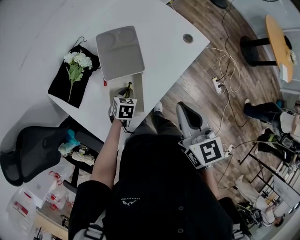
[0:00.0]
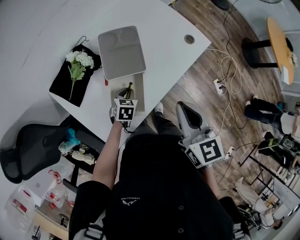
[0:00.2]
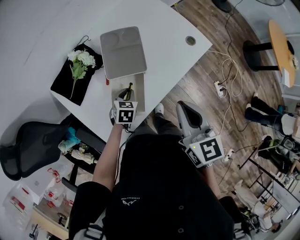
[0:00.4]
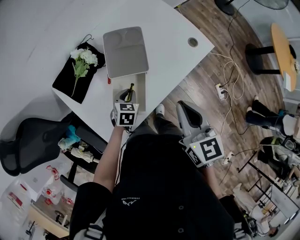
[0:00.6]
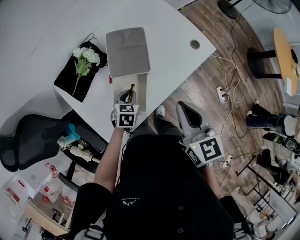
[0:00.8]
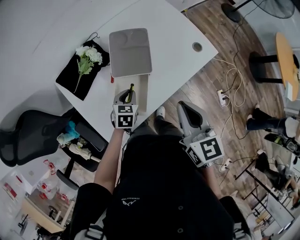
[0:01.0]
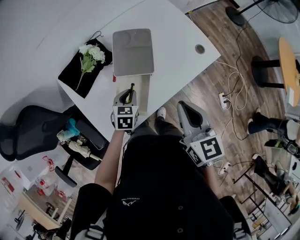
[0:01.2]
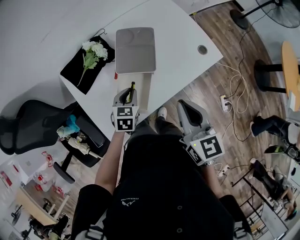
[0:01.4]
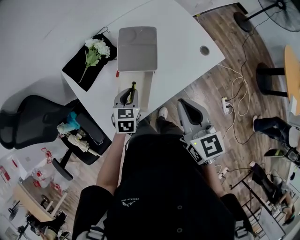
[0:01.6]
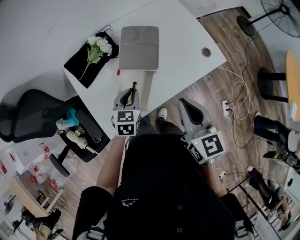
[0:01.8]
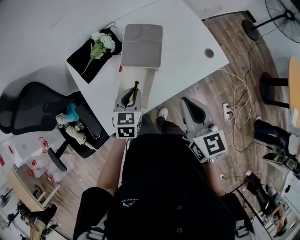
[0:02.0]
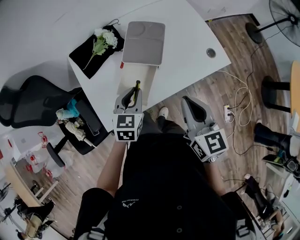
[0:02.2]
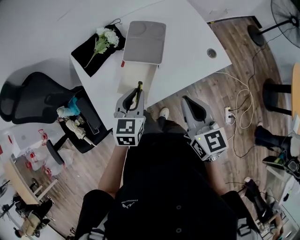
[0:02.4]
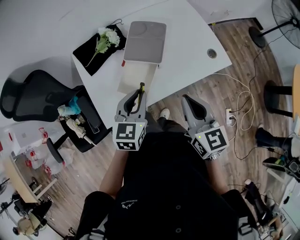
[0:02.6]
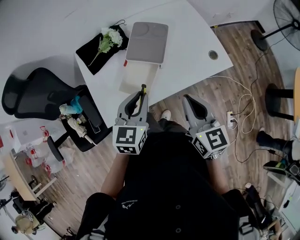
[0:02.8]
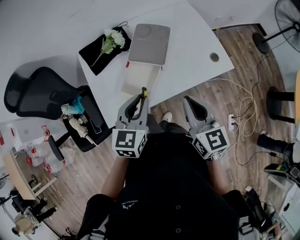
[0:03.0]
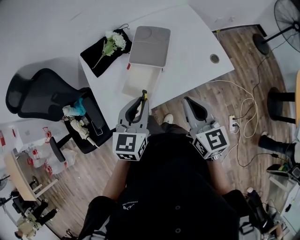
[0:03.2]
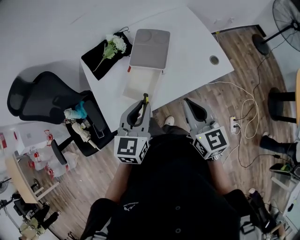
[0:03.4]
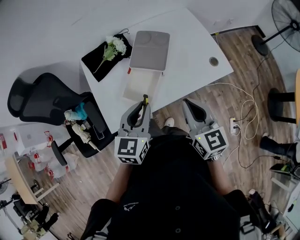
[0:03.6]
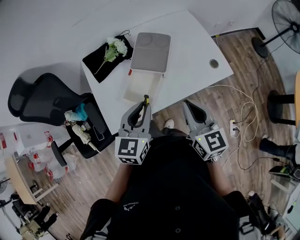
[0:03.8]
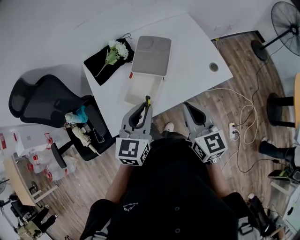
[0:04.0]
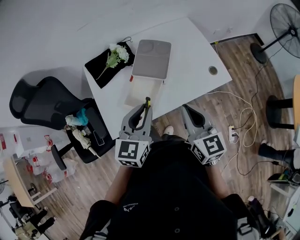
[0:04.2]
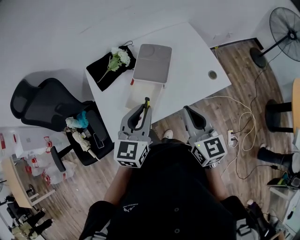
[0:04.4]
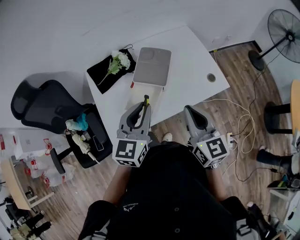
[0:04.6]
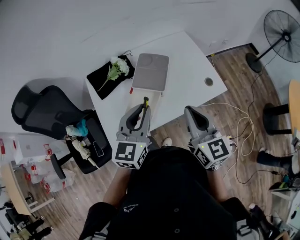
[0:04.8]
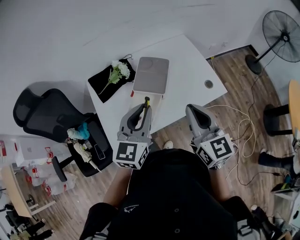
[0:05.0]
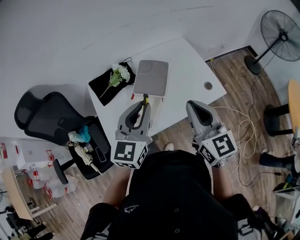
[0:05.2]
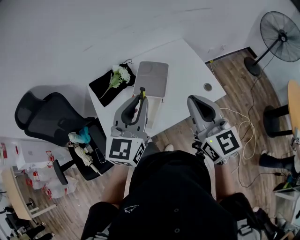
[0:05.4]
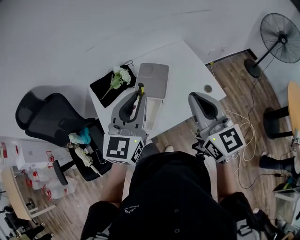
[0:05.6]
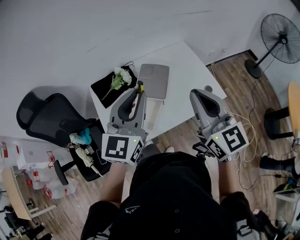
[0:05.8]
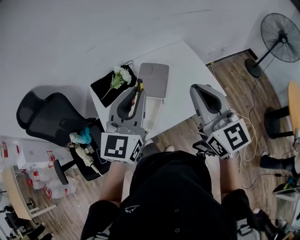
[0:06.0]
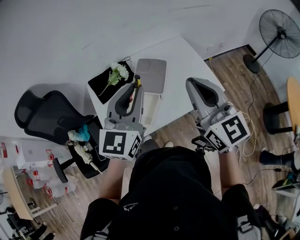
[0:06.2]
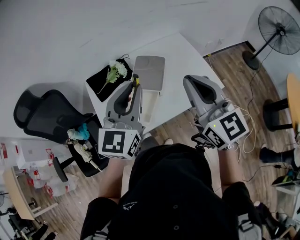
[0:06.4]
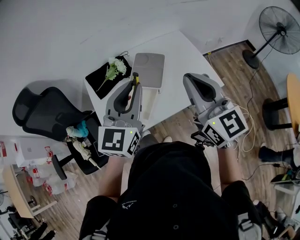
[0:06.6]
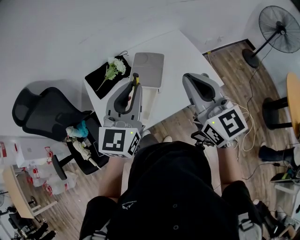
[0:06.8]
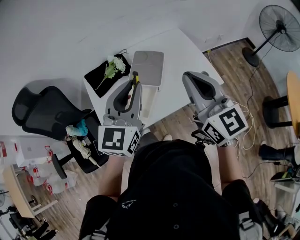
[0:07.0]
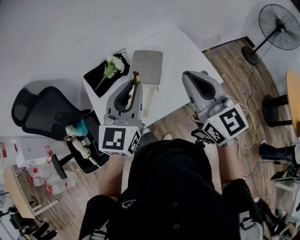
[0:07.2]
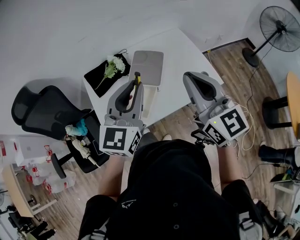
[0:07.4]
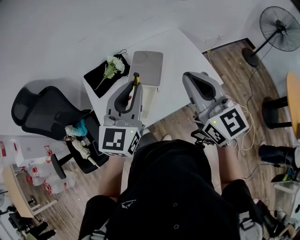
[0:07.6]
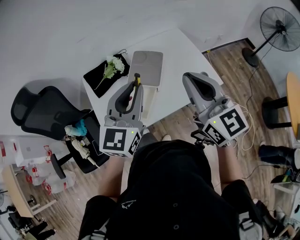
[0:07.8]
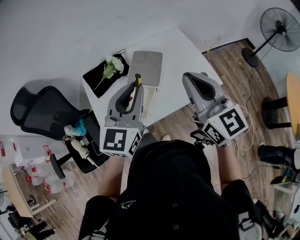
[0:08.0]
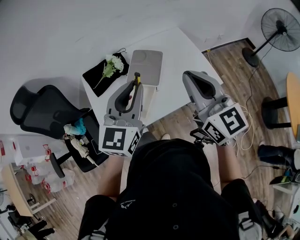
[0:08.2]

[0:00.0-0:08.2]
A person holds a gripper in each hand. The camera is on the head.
0:00.0 to 0:01.6: The left gripper is displaced upward by roughly 10 cm, and changes its angle by some 20 degrees.
0:01.6 to 0:03.2: The right gripper ends up approximately 5 cm from where it was; the left gripper is displaced upward and backward by roughly 20 cm, and turns by some 20 degrees.
0:03.2 to 0:05.0: The two grippers go about 10 cm upward.
0:05.0 to 0:06.6: The two grippers go roughly 10 cm upward.
0:06.6 to 0:08.2: The grippers make only small movements.

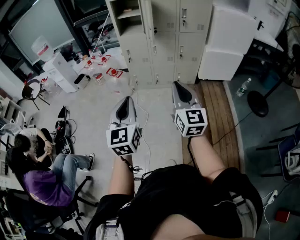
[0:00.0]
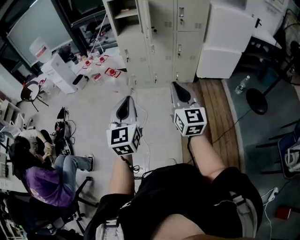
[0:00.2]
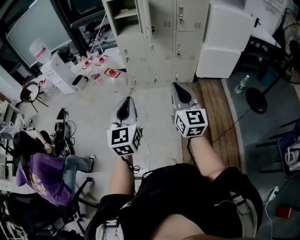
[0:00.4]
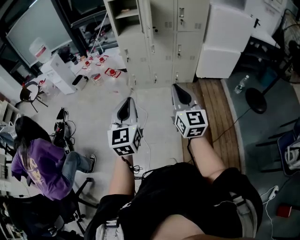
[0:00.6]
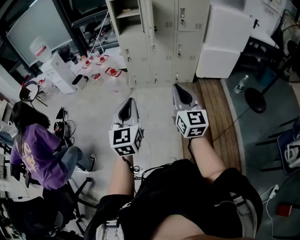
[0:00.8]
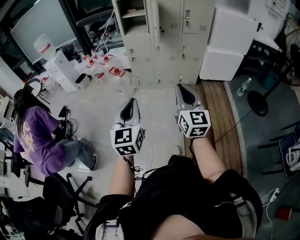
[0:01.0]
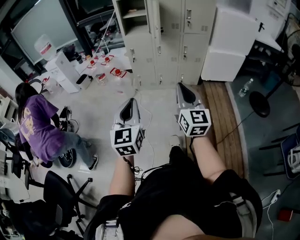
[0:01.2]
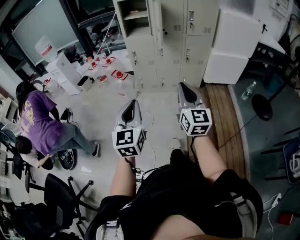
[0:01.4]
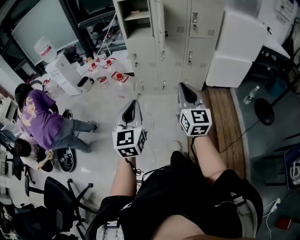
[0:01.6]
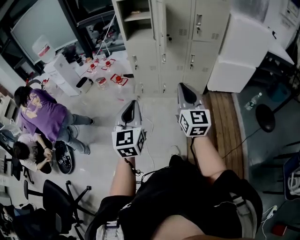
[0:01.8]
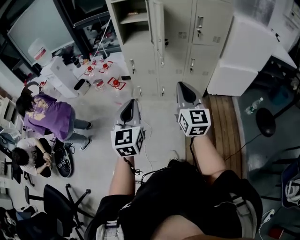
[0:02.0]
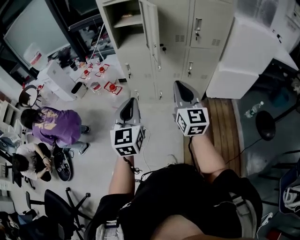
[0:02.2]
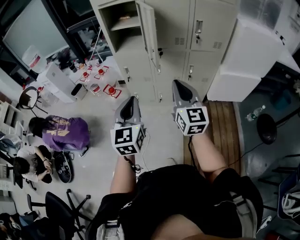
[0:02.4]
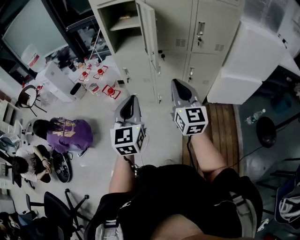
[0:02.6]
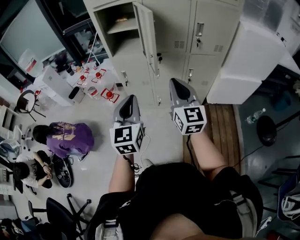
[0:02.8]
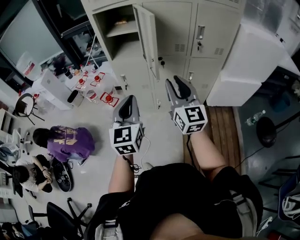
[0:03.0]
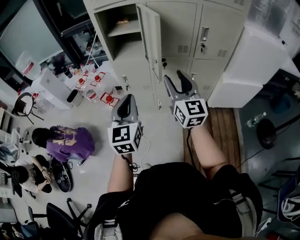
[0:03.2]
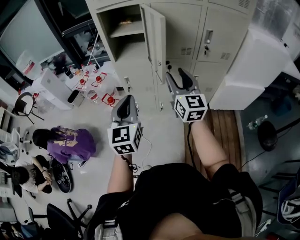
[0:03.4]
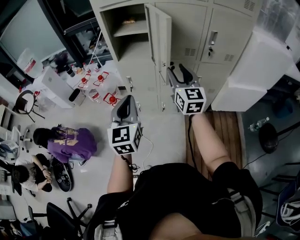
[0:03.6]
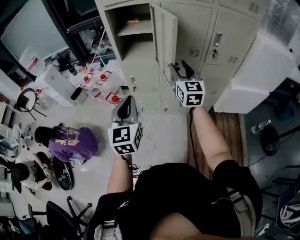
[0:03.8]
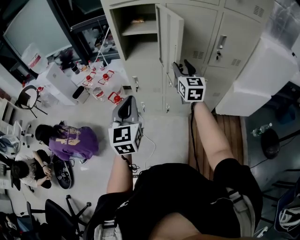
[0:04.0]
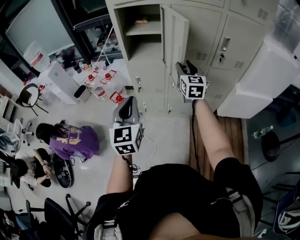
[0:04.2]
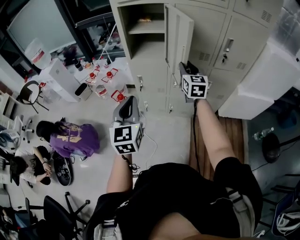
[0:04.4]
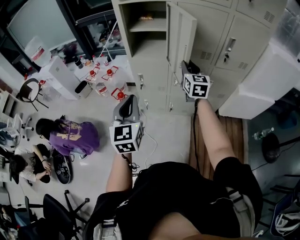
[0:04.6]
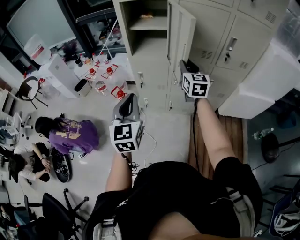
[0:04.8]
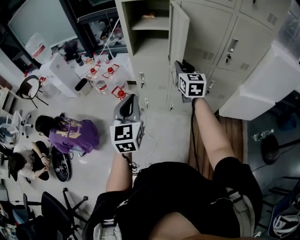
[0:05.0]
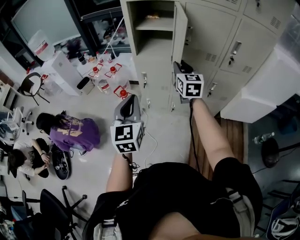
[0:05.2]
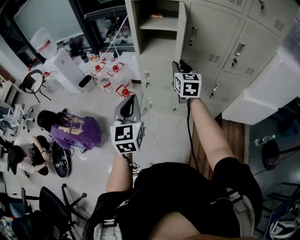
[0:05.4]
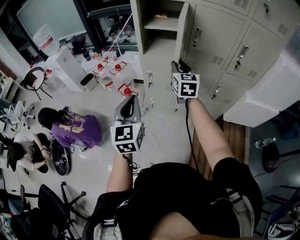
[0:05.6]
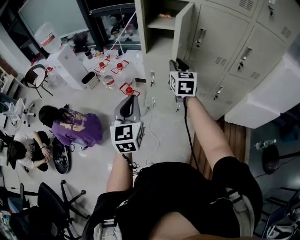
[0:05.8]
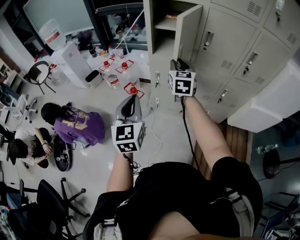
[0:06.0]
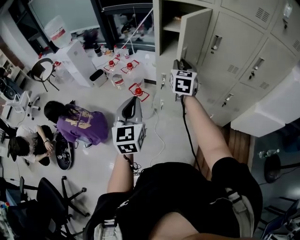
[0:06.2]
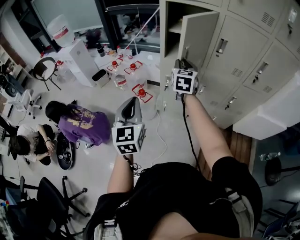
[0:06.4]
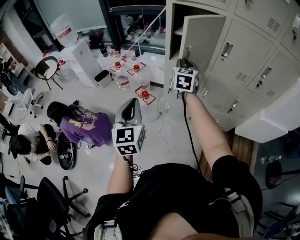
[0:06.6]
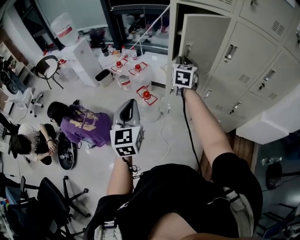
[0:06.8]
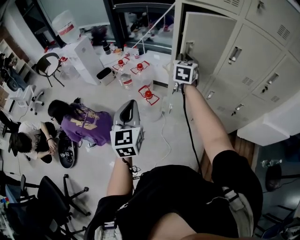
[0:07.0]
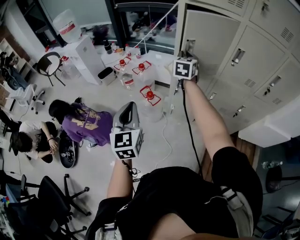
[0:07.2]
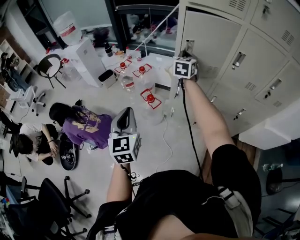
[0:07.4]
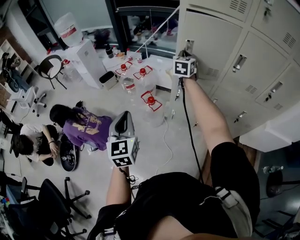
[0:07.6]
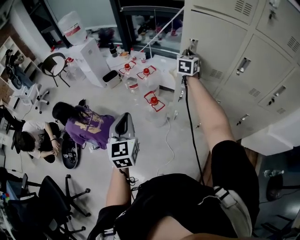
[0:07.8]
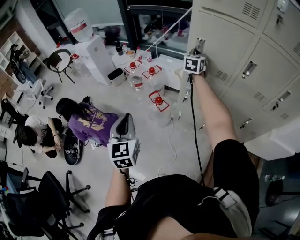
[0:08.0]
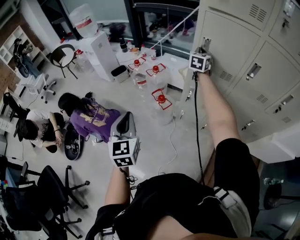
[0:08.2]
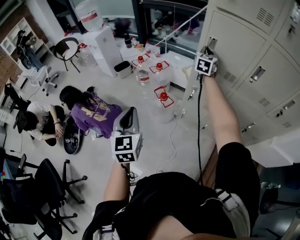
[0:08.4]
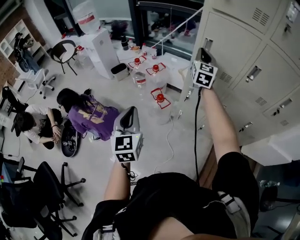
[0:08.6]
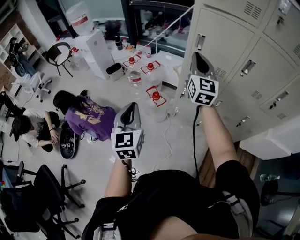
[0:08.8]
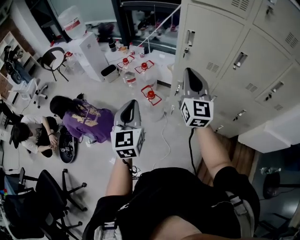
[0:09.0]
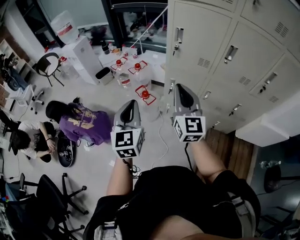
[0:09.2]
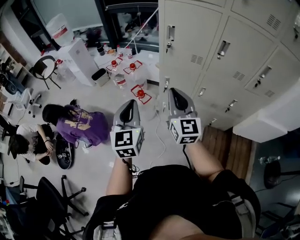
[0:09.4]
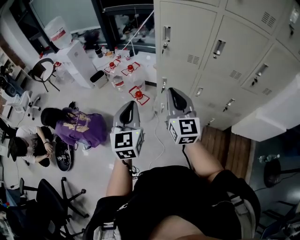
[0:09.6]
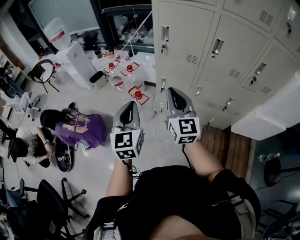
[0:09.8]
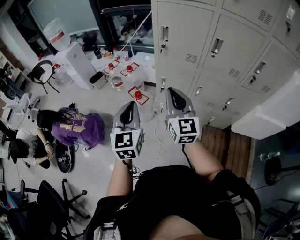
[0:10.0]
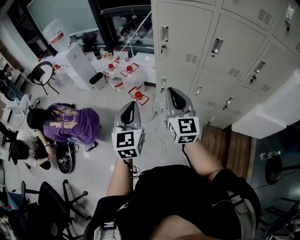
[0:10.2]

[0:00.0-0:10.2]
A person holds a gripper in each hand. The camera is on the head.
0:00.0 to 0:01.4: The left gripper moves some 5 cm.
0:01.4 to 0:03.0: Both grippers are carried forward, some 40 cm. The right gripper opens its fingers.
0:03.0 to 0:04.4: The right gripper heads forward, covering about 20 cm, while the left gripper is displaced to the left and forward by approximately 10 cm.
0:04.4 to 0:05.8: The right gripper shifts approximately 15 cm to the left. The left gripper goes roughly 5 cm to the left.
0:05.8 to 0:07.2: The left gripper goes roughly 15 cm to the left. Meanwhile the right gripper moves forward and to the left, roughly 20 cm.
0:07.2 to 0:08.8: The right gripper moves backward and upward, roughly 15 cm, and rotates some 30 degrees.
0:08.8 to 0:10.2: The left gripper is displaced to the right by approximately 10 cm. Meanwhile the right gripper travels backward and downward by roughly 20 cm.

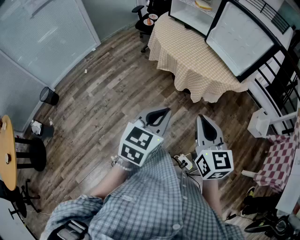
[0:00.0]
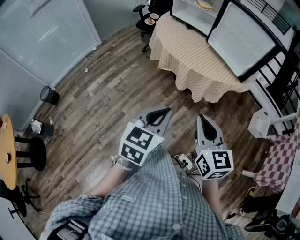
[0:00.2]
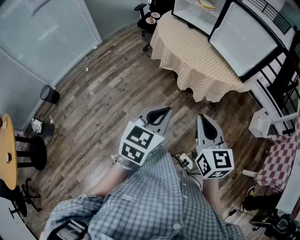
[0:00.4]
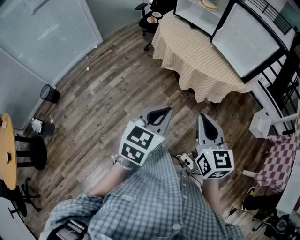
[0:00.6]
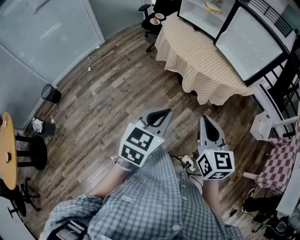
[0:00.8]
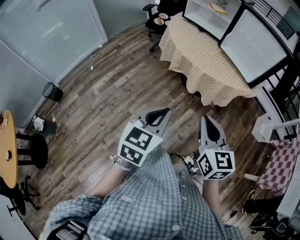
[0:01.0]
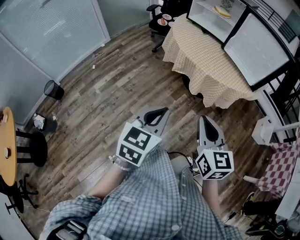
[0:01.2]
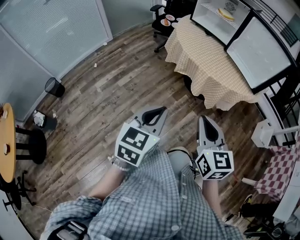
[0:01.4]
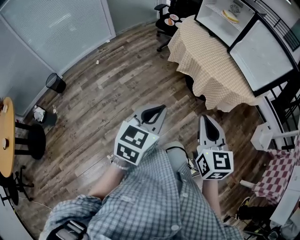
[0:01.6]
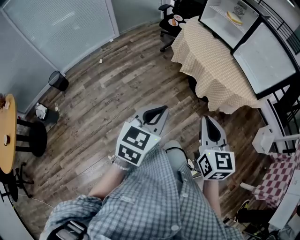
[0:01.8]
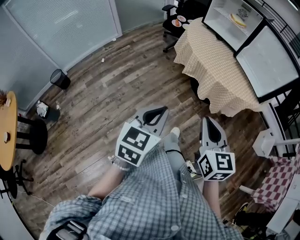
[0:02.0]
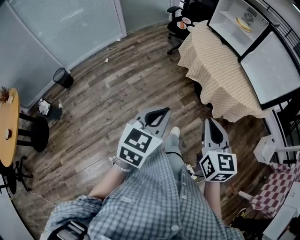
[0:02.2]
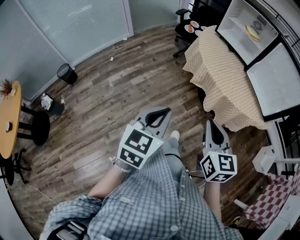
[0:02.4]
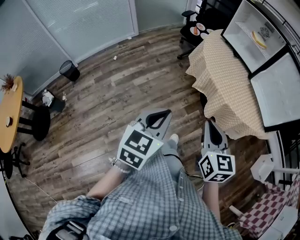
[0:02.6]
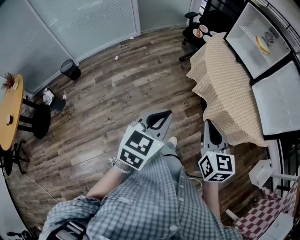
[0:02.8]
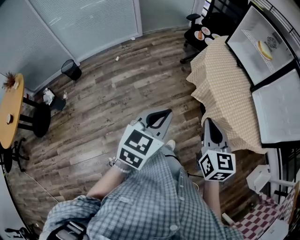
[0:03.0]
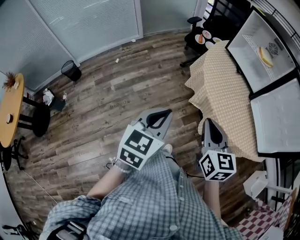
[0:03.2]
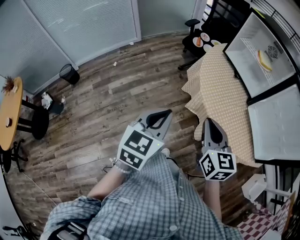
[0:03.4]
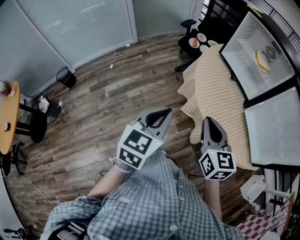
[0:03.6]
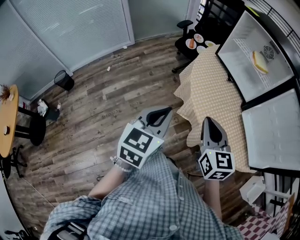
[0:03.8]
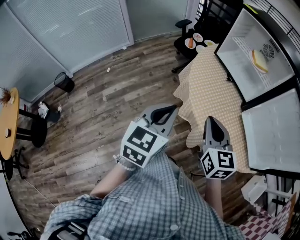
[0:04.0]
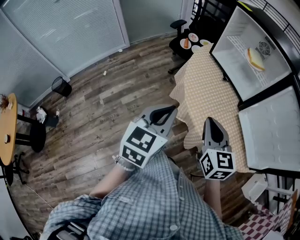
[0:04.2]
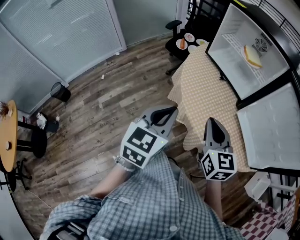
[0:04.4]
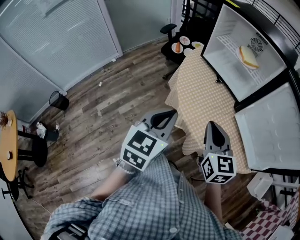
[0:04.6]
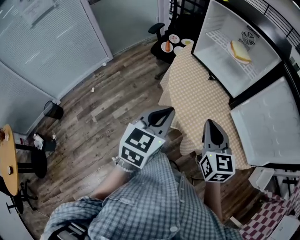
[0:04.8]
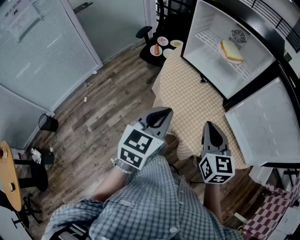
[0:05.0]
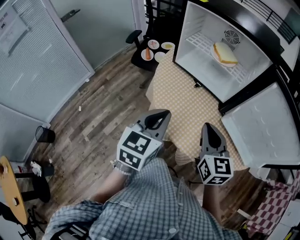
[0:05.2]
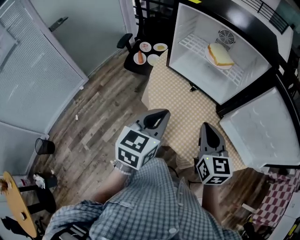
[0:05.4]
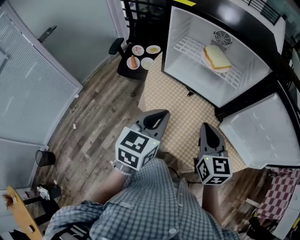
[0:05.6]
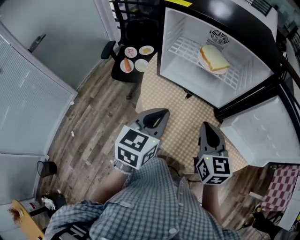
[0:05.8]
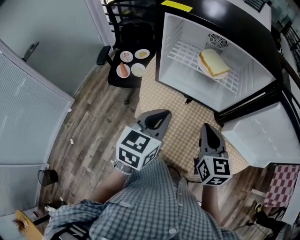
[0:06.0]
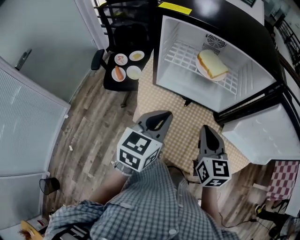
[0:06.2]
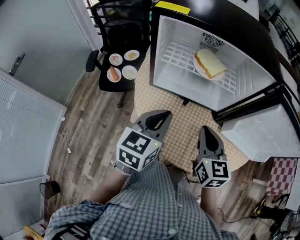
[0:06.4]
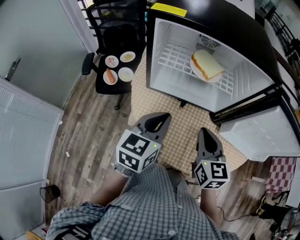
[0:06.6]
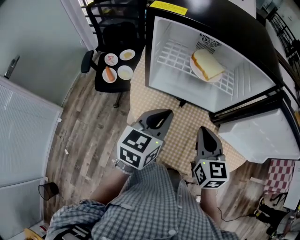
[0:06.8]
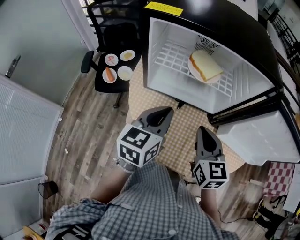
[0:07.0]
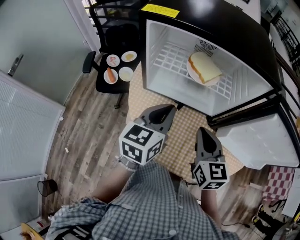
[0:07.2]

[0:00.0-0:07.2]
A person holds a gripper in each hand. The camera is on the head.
0:00.0 to 0:01.4: Both grippers travel together to the left, approximately 10 cm.
0:01.4 to 0:02.8: Both grippers travel together forward, roughly 15 cm.
0:02.8 to 0:04.4: The two grippers go roughly 25 cm forward and to the right.
0:04.4 to 0:05.8: The left gripper moves some 25 cm, and changes its angle by about 30 degrees, while the right gripper shifts by roughly 20 cm, and changes its angle by some 30 degrees.
0:05.8 to 0:07.2: The right gripper heads forward, covering some 5 cm. The left gripper heads forward, covering some 10 cm.
